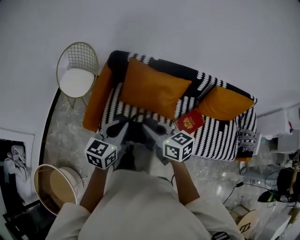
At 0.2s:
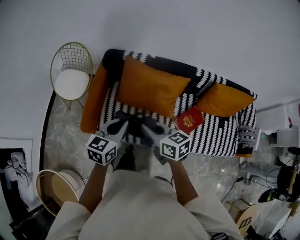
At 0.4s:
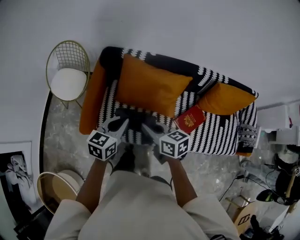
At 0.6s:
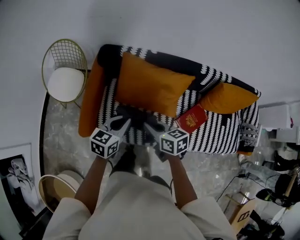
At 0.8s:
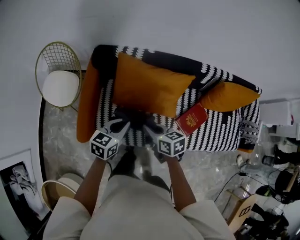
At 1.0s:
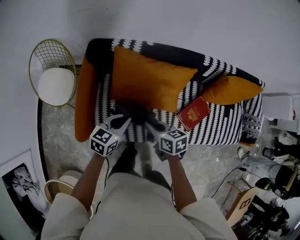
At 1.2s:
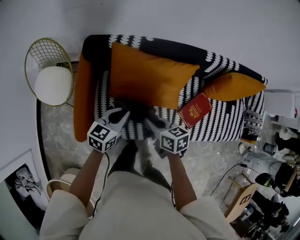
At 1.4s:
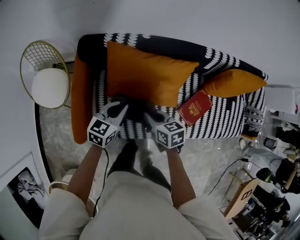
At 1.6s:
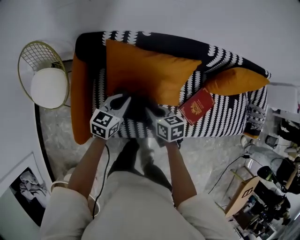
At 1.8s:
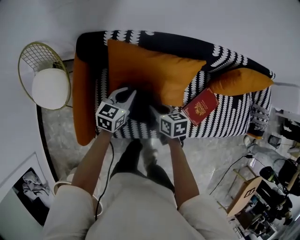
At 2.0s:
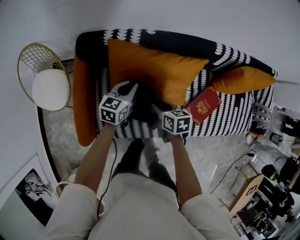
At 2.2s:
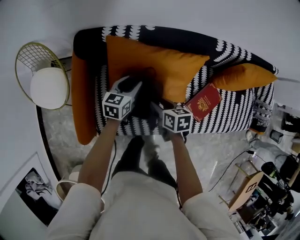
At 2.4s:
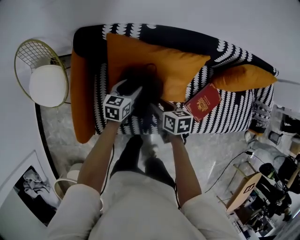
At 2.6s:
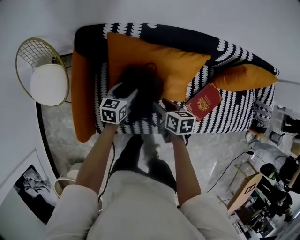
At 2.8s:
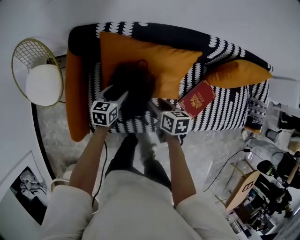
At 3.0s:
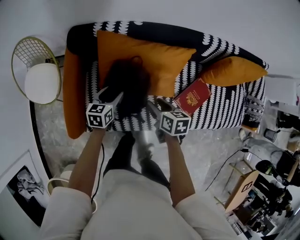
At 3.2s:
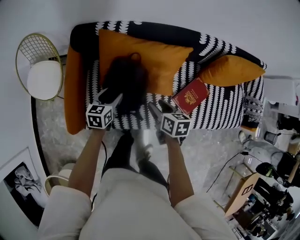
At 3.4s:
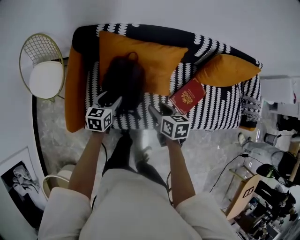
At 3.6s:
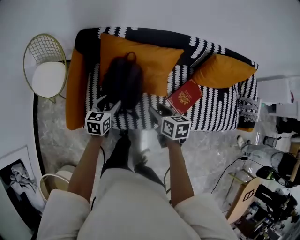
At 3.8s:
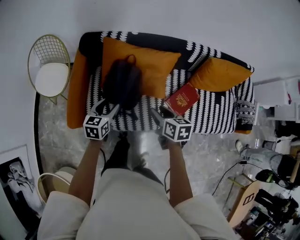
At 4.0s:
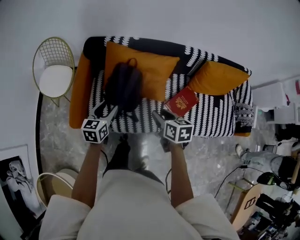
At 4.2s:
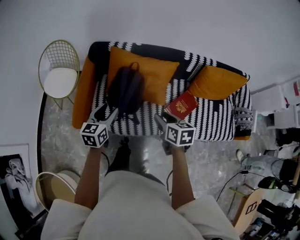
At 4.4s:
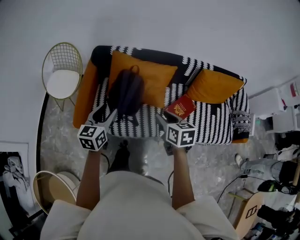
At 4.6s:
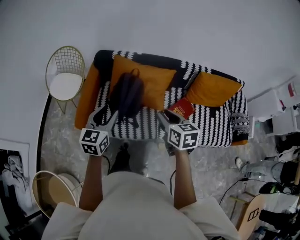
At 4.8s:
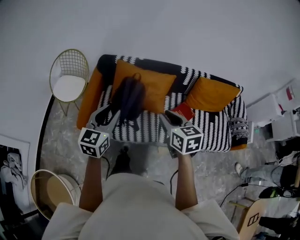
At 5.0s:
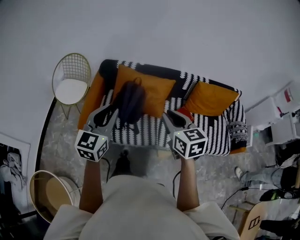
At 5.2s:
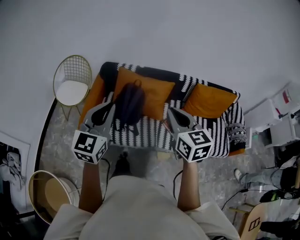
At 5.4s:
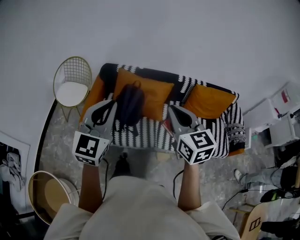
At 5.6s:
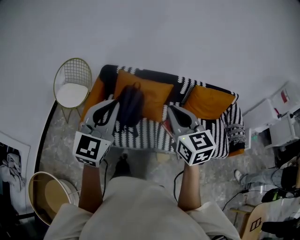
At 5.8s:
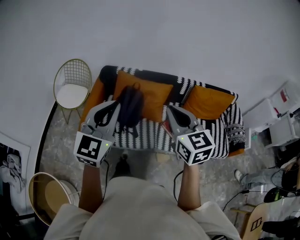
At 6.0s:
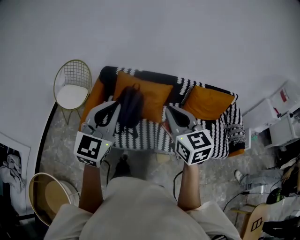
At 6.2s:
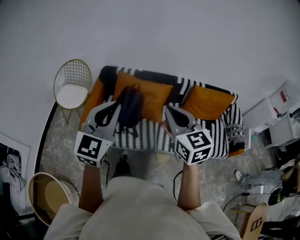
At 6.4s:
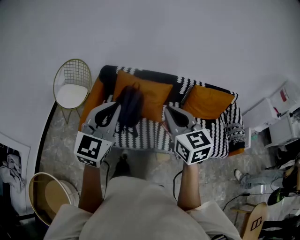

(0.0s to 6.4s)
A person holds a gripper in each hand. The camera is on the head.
0.0s - 1.6s: The left gripper shifts roughly 40 cm forward and downward, and swivels approximately 20 degrees, while the right gripper moves downward and forward, about 40 cm, and rotates some 30 degrees.
1.6s - 3.2s: The right gripper moves to the right and backward, approximately 10 cm, and opens. The left gripper goes approximately 10 cm downward and backward, and opens up.
3.2s - 4.8s: The two grippers go about 40 cm upward and backward. The right gripper changes its angle by roughly 30 degrees, and closes up, while the left gripper rotates approximately 30 degrees, and closes its fingers.
4.8s - 6.4s: Both grippers move upward and backward, roughly 15 cm. The right gripper turns by about 20 degrees, and closes up. Meanwhile the left gripper closes its fingers.

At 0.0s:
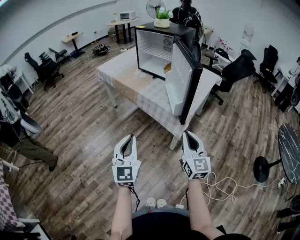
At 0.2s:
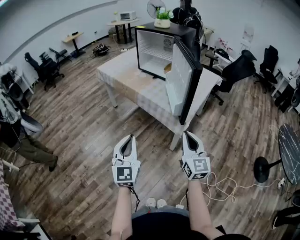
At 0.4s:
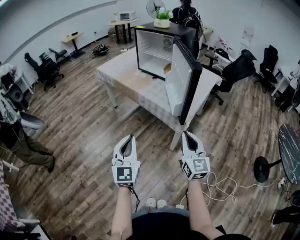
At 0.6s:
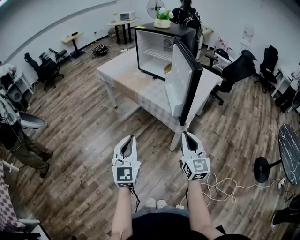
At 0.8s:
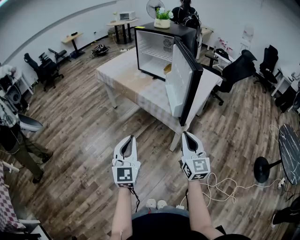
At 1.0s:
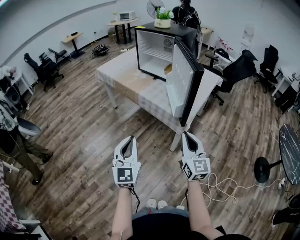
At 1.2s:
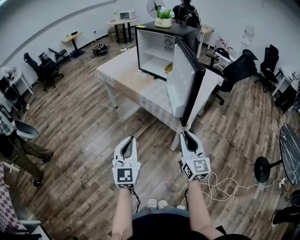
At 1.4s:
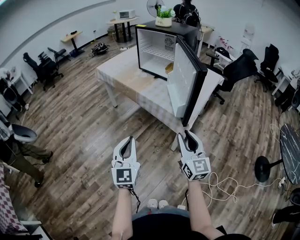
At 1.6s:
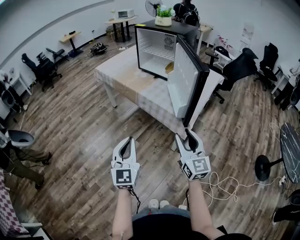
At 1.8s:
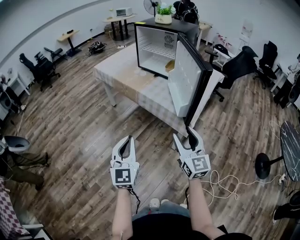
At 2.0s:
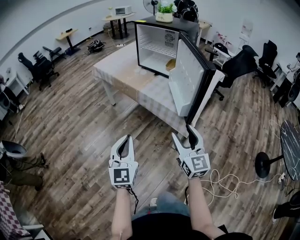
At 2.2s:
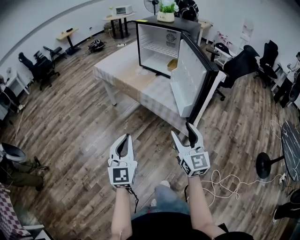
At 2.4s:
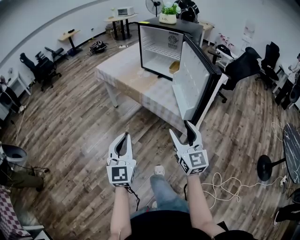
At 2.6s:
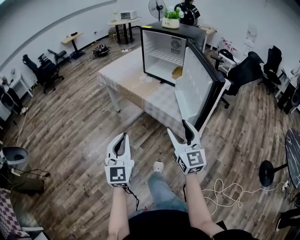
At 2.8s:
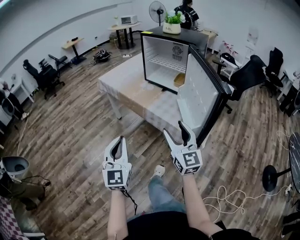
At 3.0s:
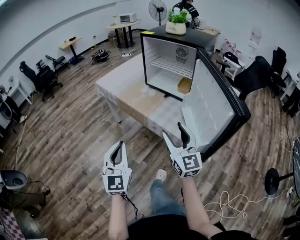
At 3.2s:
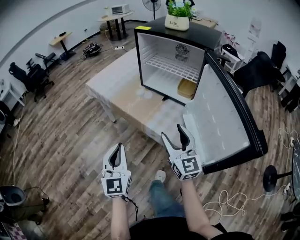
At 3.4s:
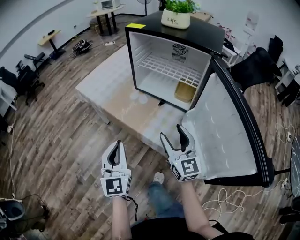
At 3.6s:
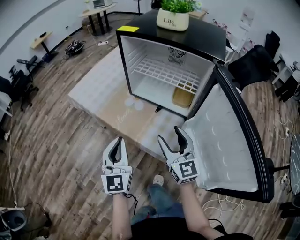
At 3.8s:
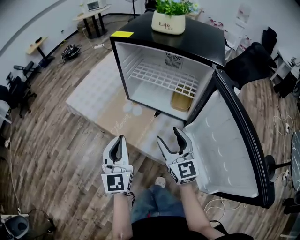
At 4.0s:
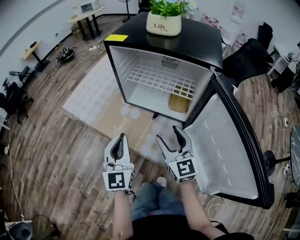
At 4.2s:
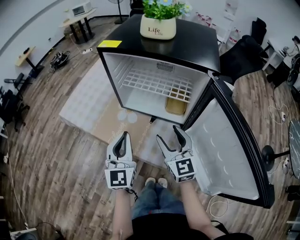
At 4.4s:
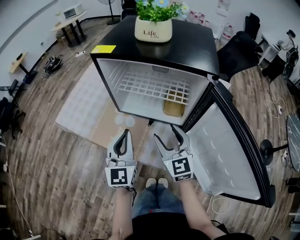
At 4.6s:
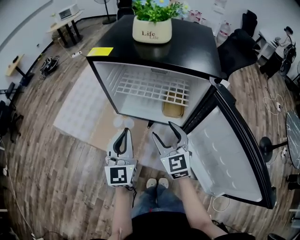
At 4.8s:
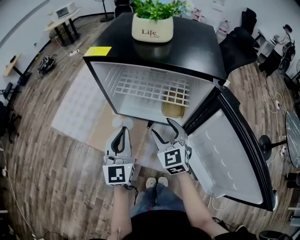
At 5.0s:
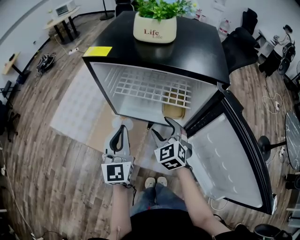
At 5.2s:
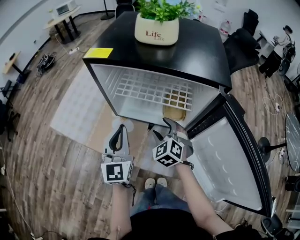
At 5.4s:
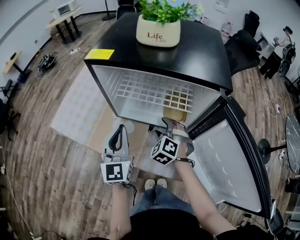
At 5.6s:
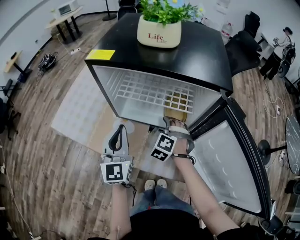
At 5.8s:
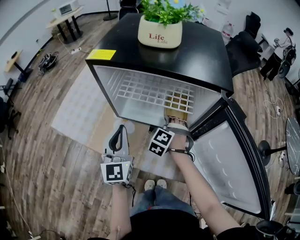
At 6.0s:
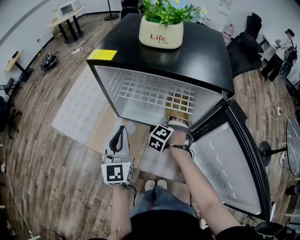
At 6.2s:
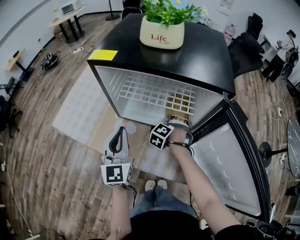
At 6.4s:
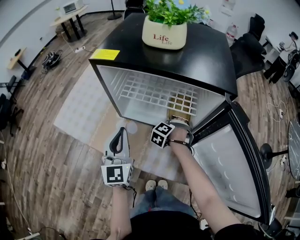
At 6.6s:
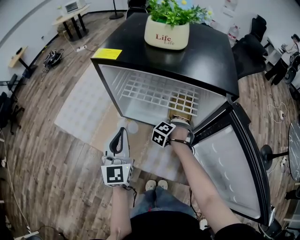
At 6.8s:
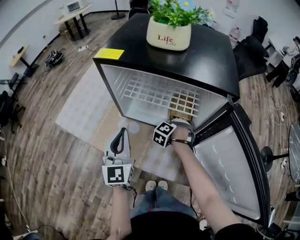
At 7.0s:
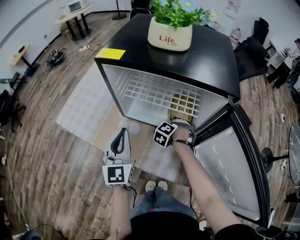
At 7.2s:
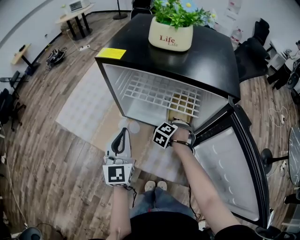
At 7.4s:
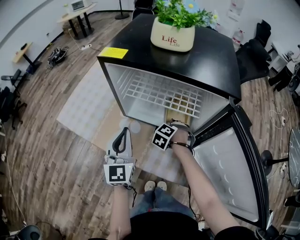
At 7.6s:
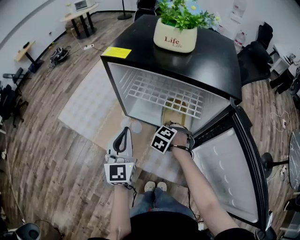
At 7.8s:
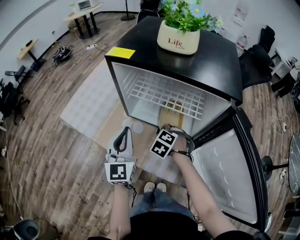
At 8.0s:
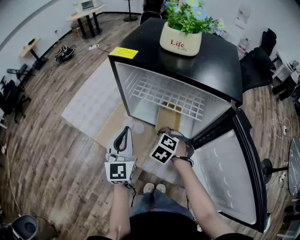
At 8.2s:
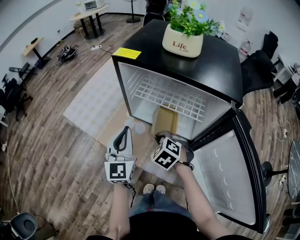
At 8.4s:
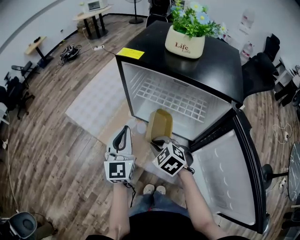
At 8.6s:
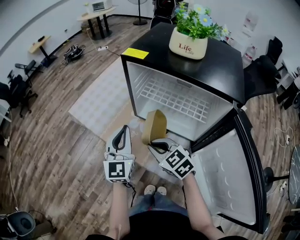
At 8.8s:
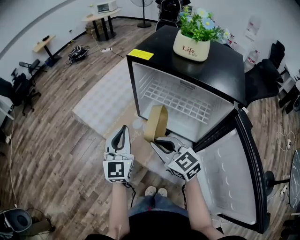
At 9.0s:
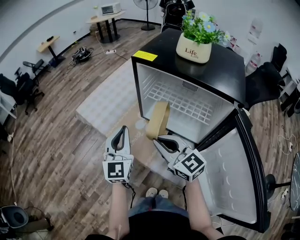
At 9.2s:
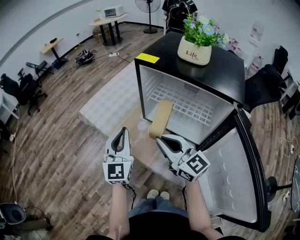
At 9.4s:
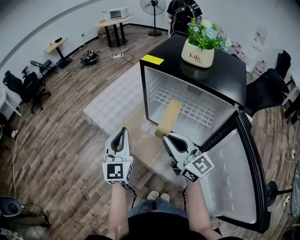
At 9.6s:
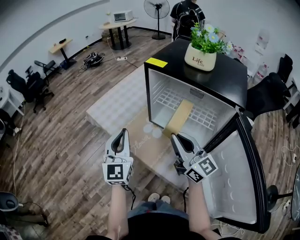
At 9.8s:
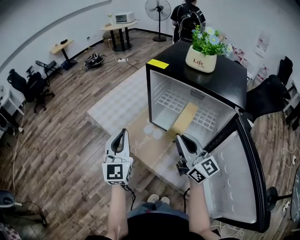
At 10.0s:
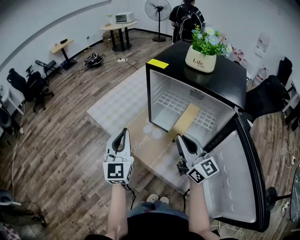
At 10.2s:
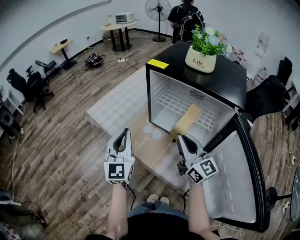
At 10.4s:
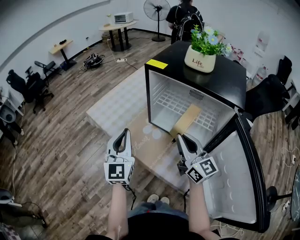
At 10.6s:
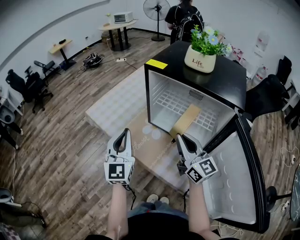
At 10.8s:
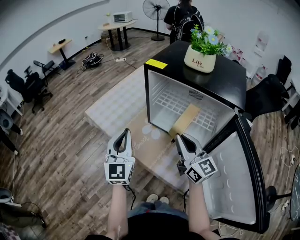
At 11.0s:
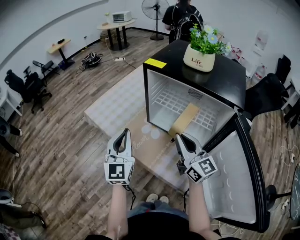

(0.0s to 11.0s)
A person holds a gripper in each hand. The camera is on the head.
0.0s - 1.6s: The right gripper changes place by about 5 cm, and opens its fingers.
1.6s - 3.2s: Both grippers move forward, roughly 35 cm. The right gripper opens.
3.2s - 4.8s: The grippers both shift forward by approximately 30 cm. The left gripper swivels approximately 20 degrees; the right gripper turns by about 30 degrees.
4.8s - 6.2s: The right gripper shifts approximately 20 cm downward and forward, and tips its fingers downward by some 40 degrees.
6.2s - 7.8s: The right gripper is displaced to the left and backward by some 10 cm, and closes.
7.8s - 9.4s: The left gripper moves roughly 10 cm. Meanwhile the right gripper is displaced upward by some 25 cm, and points its fingers approximately 80 degrees further upward.
9.4s - 11.0s: The right gripper moves about 5 cm.

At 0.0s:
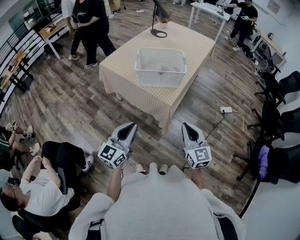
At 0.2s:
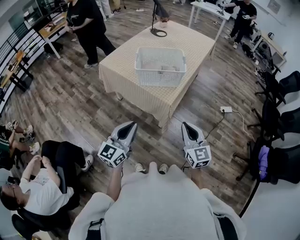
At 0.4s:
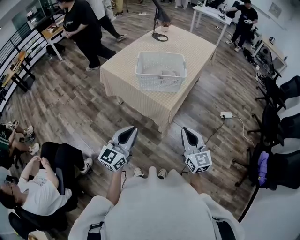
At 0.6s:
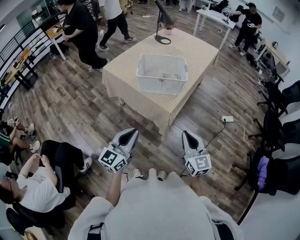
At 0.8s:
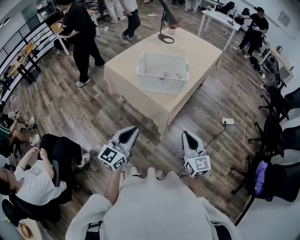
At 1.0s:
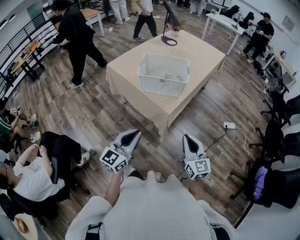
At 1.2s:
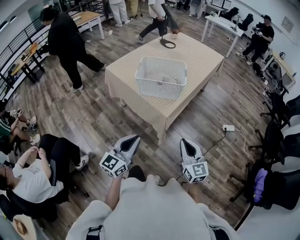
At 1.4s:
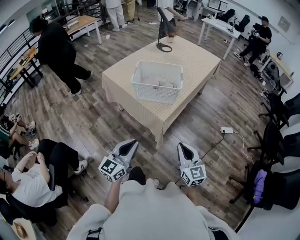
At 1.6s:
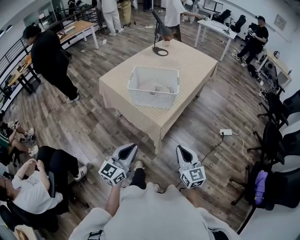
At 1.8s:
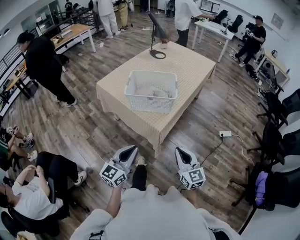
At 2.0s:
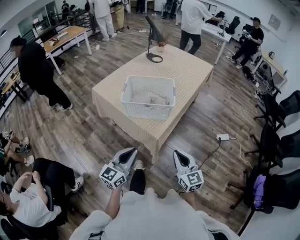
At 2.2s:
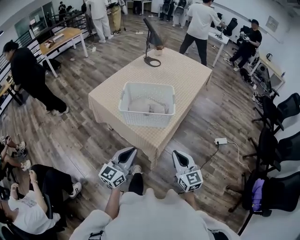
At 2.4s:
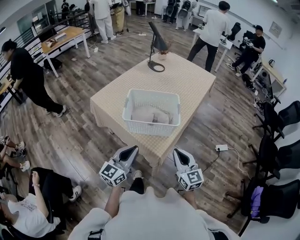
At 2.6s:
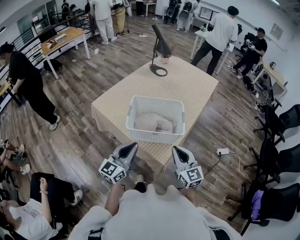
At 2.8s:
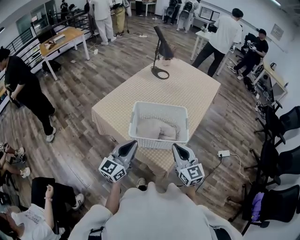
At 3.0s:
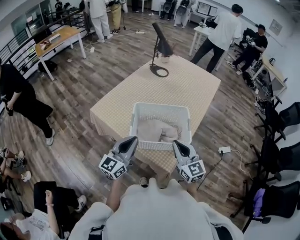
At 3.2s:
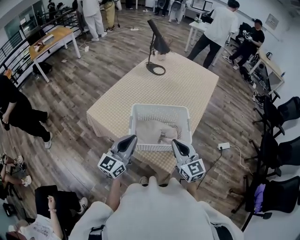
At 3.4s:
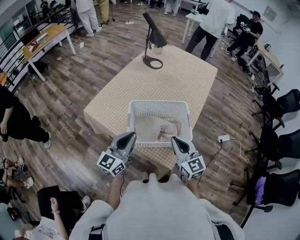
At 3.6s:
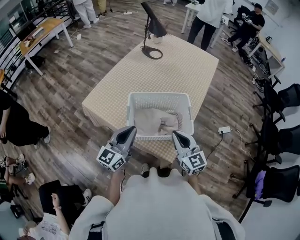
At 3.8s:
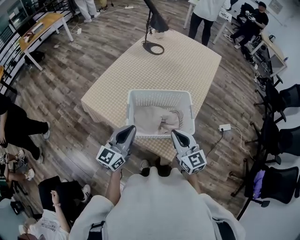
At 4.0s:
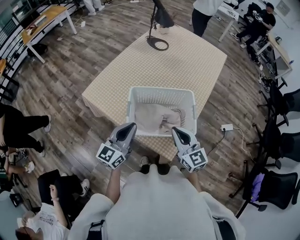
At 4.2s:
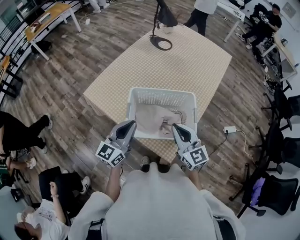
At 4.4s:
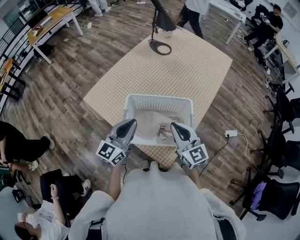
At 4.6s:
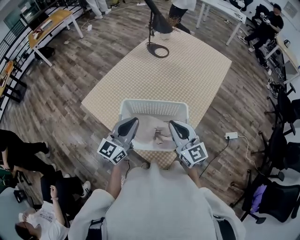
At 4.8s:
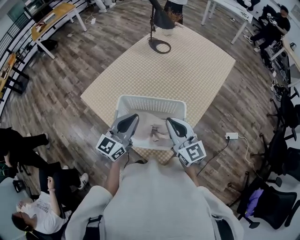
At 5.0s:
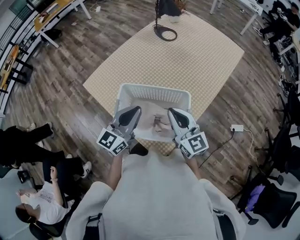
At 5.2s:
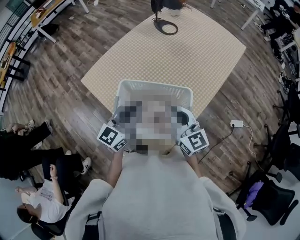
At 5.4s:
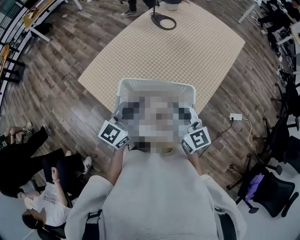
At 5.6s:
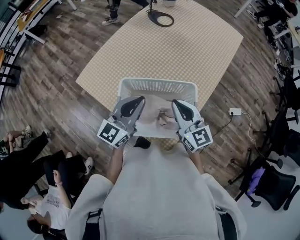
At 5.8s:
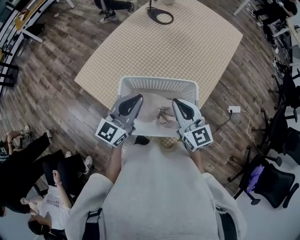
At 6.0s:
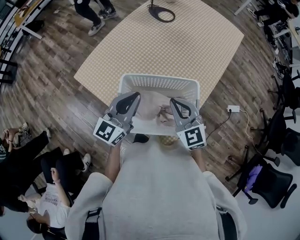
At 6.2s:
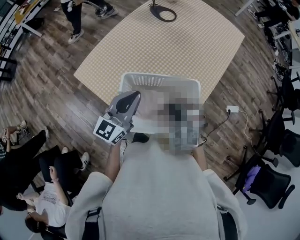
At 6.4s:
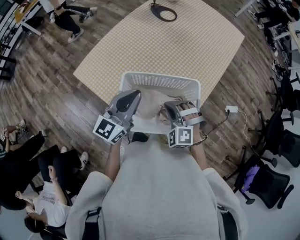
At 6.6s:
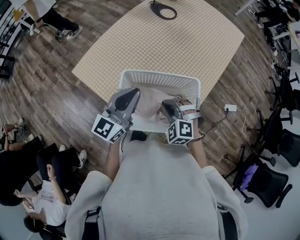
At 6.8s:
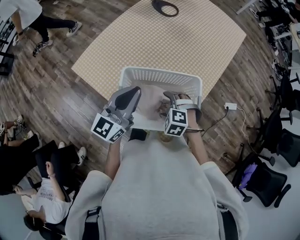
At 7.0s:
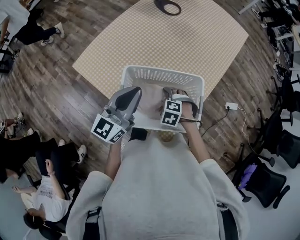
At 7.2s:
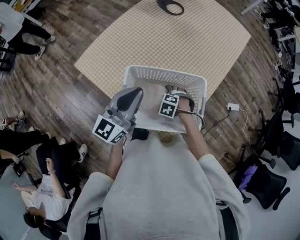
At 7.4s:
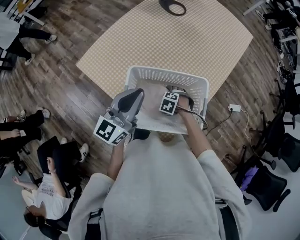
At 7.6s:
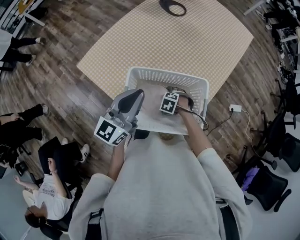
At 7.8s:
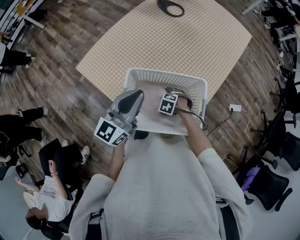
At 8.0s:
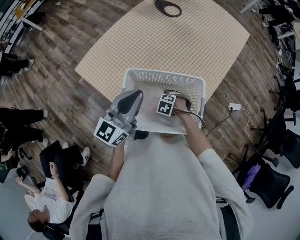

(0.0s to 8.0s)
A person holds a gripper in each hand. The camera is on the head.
0.0s - 1.6s: Both grippers travel together to the right, about 10 cm.
1.6s - 3.2s: The left gripper goes approximately 40 cm forward. The right gripper goes approximately 40 cm forward and to the left.
3.2s - 4.8s: The right gripper travels forward by roughly 15 cm; the left gripper goes about 15 cm forward and to the right.
4.8s - 6.4s: The right gripper moves downward and to the left, roughly 15 cm, and rolls counterclockwise, seen from behind, by approximately 60 degrees. Meanwhile the left gripper shifts by about 5 cm.
6.4s - 8.0s: The right gripper moves downward, roughly 20 cm, tilts its fingers some 40 degrees downward, and opens.
